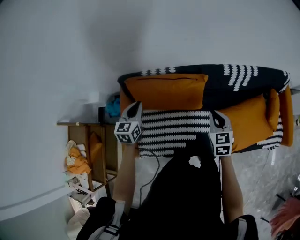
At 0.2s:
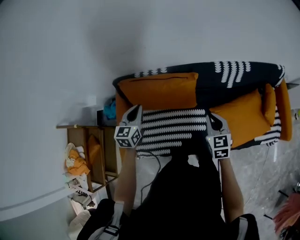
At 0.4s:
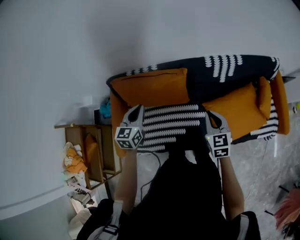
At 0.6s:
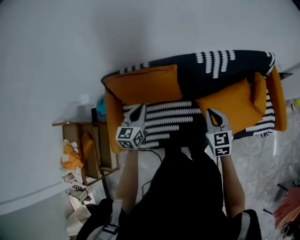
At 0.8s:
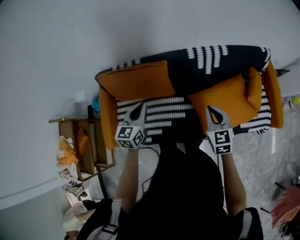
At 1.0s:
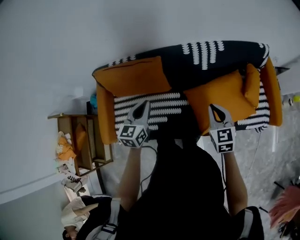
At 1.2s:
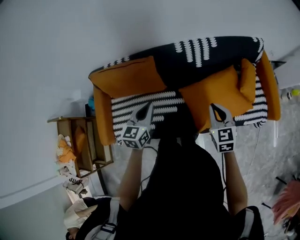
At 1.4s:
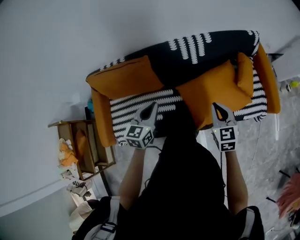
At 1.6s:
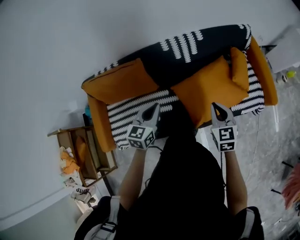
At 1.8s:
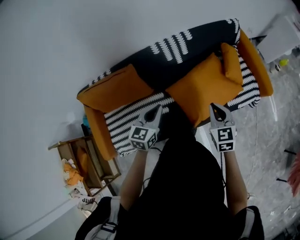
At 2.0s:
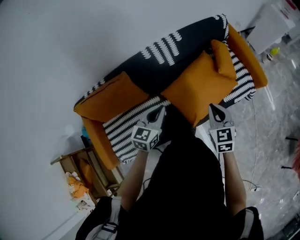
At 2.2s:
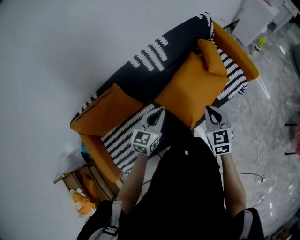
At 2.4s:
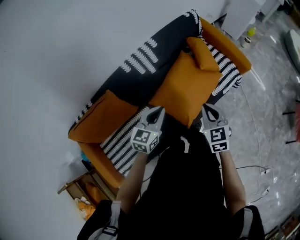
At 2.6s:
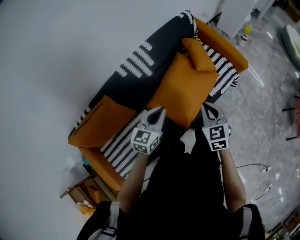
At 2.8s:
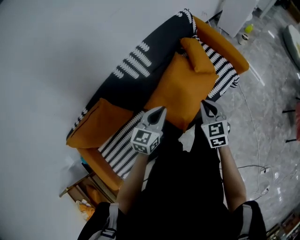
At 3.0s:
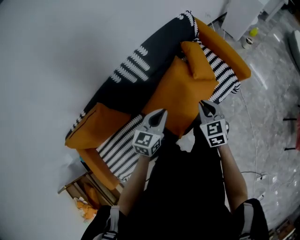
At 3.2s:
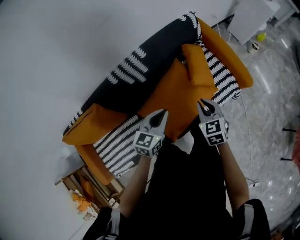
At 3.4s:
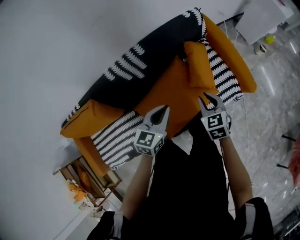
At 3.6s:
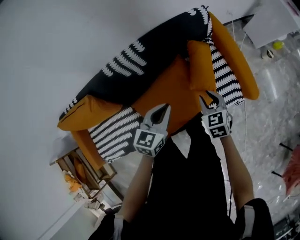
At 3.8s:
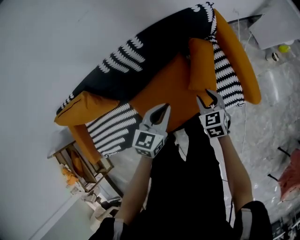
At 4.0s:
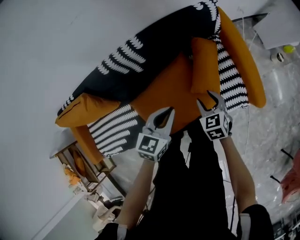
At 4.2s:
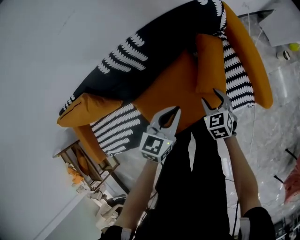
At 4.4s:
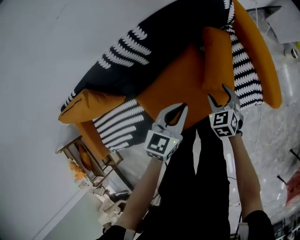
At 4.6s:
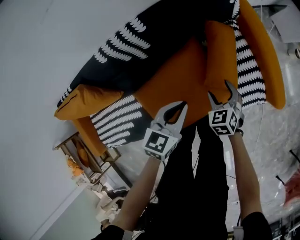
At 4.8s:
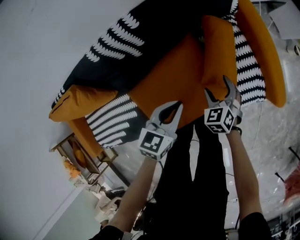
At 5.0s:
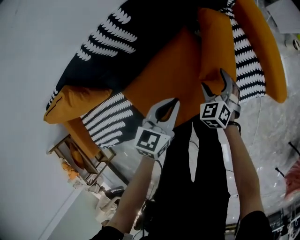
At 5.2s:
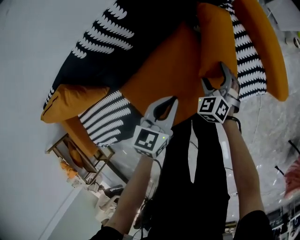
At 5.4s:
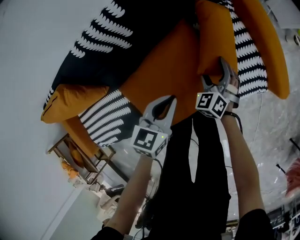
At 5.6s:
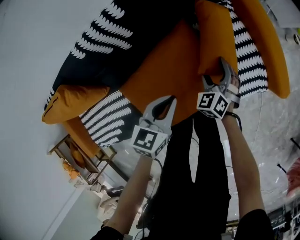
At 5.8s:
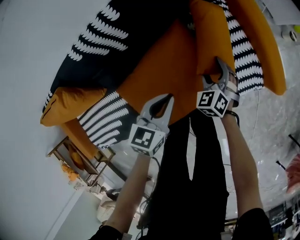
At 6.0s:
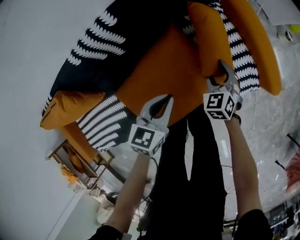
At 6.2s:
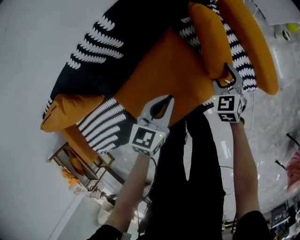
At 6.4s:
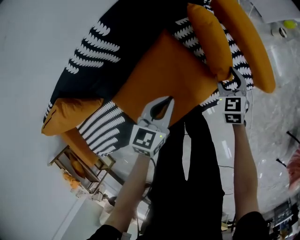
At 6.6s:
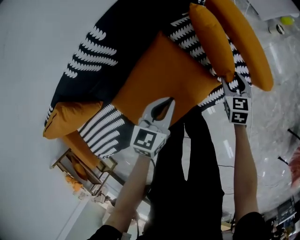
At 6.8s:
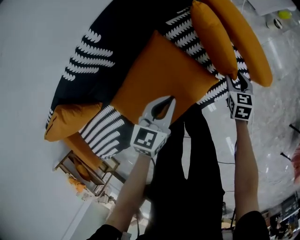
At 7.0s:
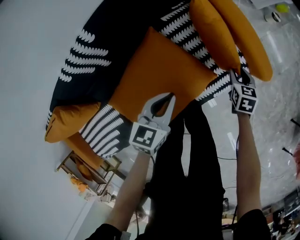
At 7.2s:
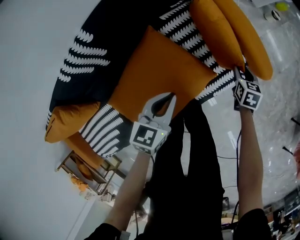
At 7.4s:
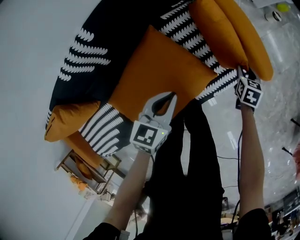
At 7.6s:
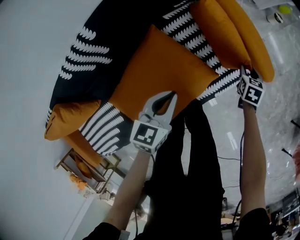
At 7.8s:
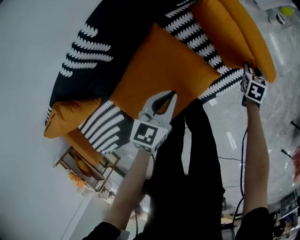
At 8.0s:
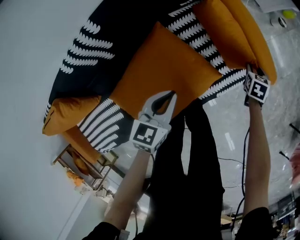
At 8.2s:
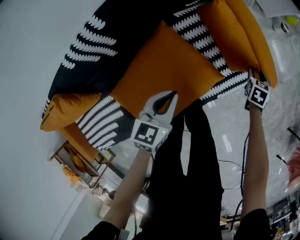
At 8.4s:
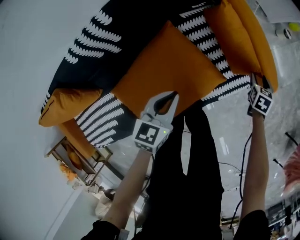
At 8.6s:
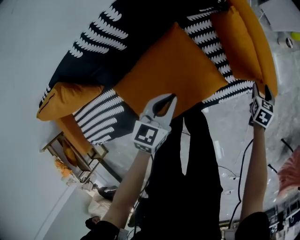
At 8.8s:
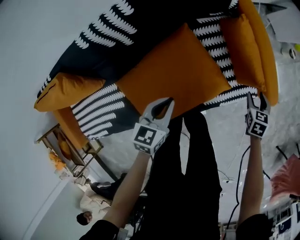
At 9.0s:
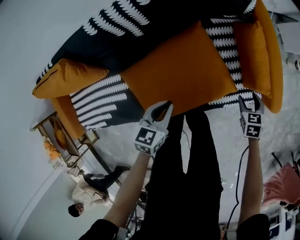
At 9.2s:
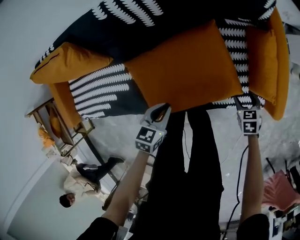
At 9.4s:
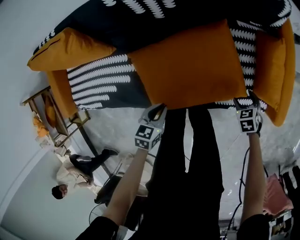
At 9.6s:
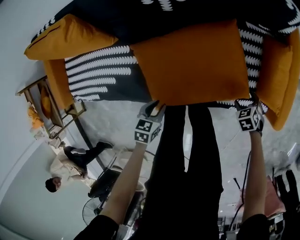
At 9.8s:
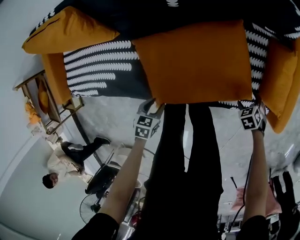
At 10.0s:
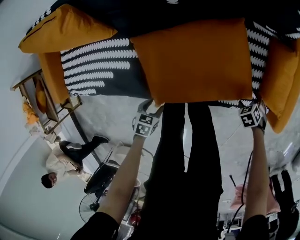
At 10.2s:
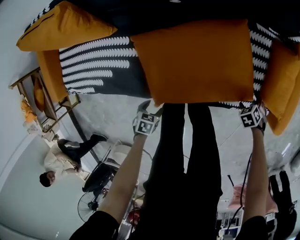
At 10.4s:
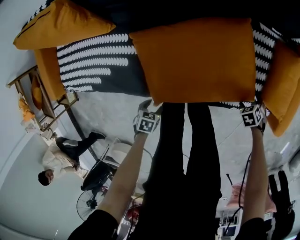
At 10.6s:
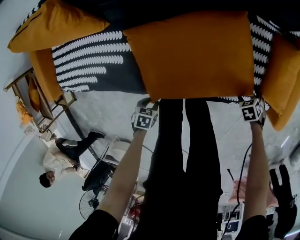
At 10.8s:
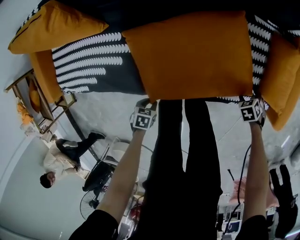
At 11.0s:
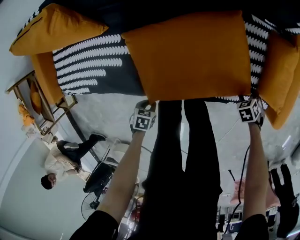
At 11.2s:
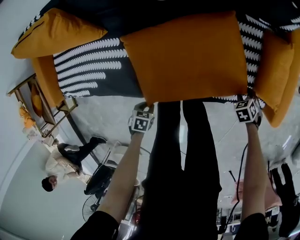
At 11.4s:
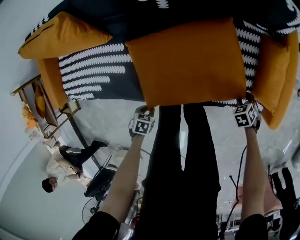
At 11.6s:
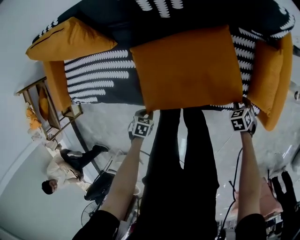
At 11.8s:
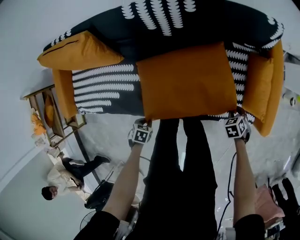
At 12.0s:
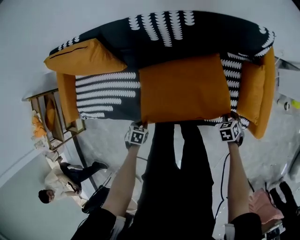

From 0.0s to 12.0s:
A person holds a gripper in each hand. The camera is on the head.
From 0.0s to 1.6s: The right gripper goes about 35 cm to the right and backward. The left gripper travels to the right by about 40 cm, and swivels some 20 degrees.
From 1.6s to 3.0s: The right gripper changes place by roughly 15 cm. Meanwhile the left gripper shifts by approximately 25 cm, and swivels about 30 degrees.
From 3.0s to 4.4s: The right gripper goes about 30 cm downward, forward and to the right, turns by roughly 20 degrees, and opens; the left gripper heads forward, to the right and downward, covering roughly 25 cm.
From 4.4s to 6.0s: The two grippers go about 10 cm downward.
From 6.0s to 7.6s: The right gripper heads to the right, covering about 25 cm, and rotates around the line of its fingers by approximately 40 degrees, clockwise from behind; the left gripper travels to the right by roughly 5 cm.
From 7.6s to 9.0s: The right gripper ends up roughly 15 cm from where it was, and swivels roughly 40 degrees. The left gripper changes place by some 15 cm, and changes its angle by roughly 20 degrees.
From 9.0s to 10.4s: The left gripper changes place by about 35 cm, tilts its fingers roughly 30 degrees downward, and opens up, while the right gripper travels downward by approximately 15 cm, and rotates some 50 degrees.
From 10.4s to 12.0s: Both grippers move upward, approximately 15 cm. The left gripper closes its fingers. The right gripper closes up.

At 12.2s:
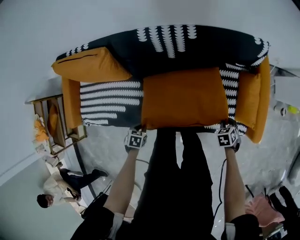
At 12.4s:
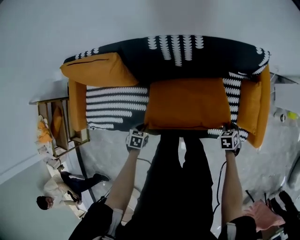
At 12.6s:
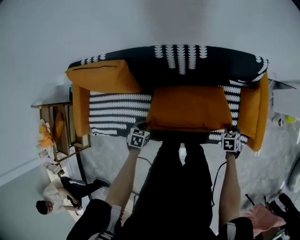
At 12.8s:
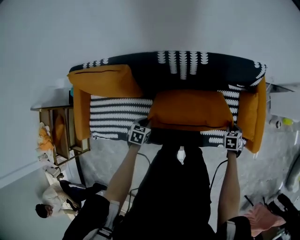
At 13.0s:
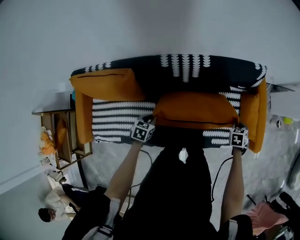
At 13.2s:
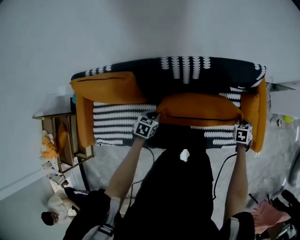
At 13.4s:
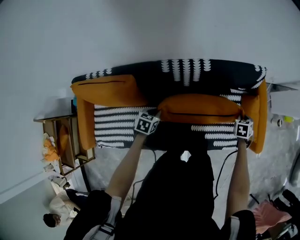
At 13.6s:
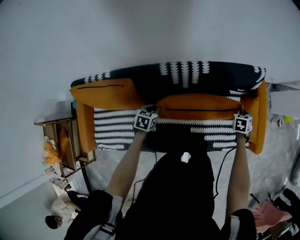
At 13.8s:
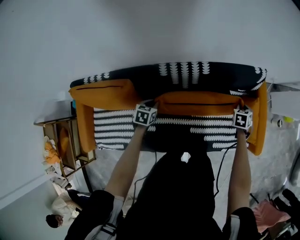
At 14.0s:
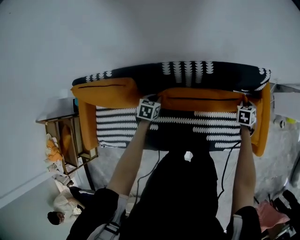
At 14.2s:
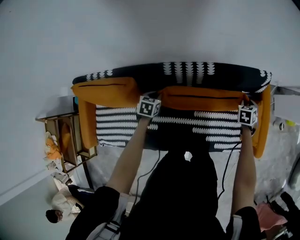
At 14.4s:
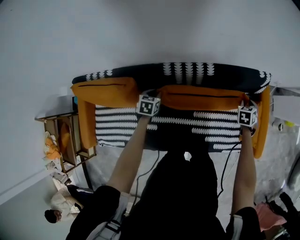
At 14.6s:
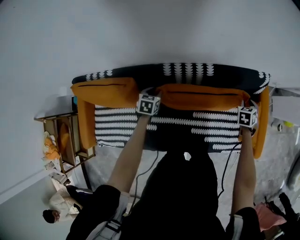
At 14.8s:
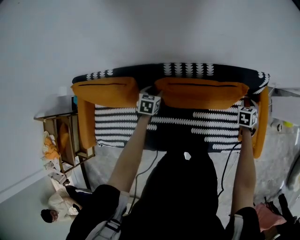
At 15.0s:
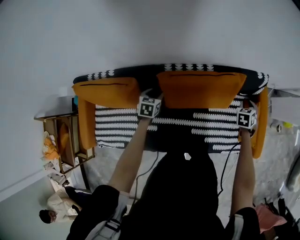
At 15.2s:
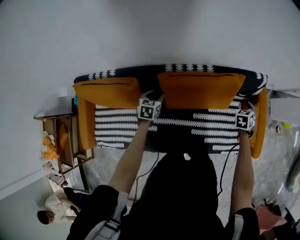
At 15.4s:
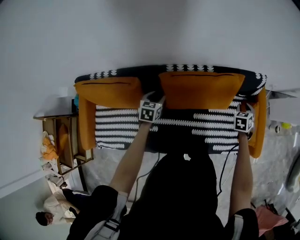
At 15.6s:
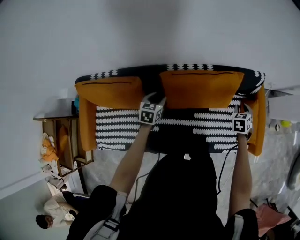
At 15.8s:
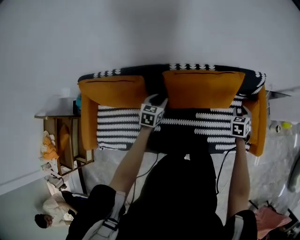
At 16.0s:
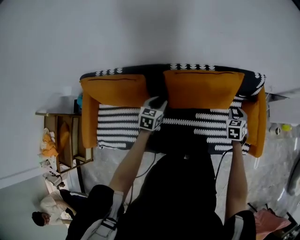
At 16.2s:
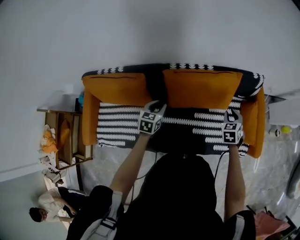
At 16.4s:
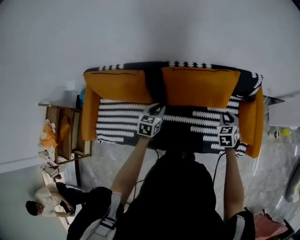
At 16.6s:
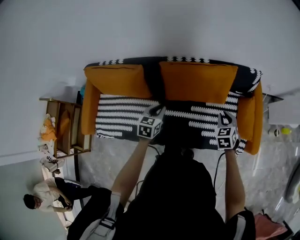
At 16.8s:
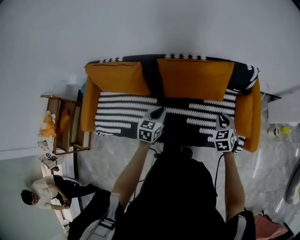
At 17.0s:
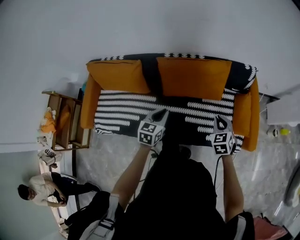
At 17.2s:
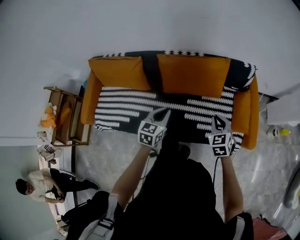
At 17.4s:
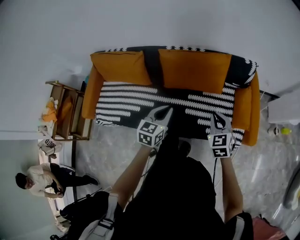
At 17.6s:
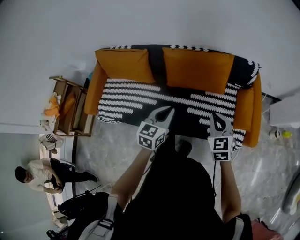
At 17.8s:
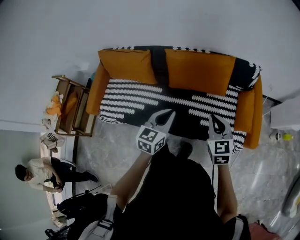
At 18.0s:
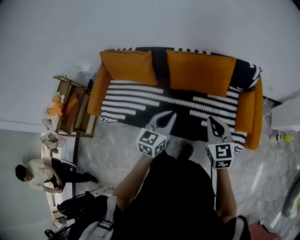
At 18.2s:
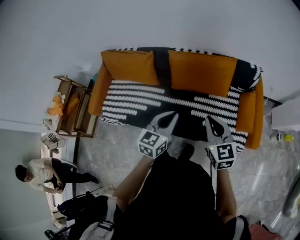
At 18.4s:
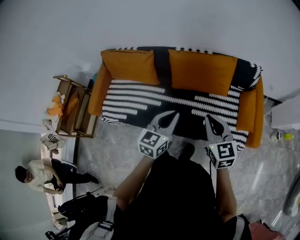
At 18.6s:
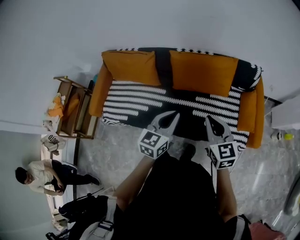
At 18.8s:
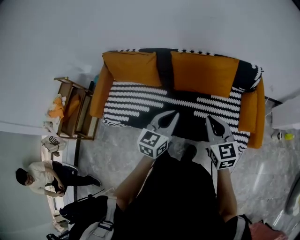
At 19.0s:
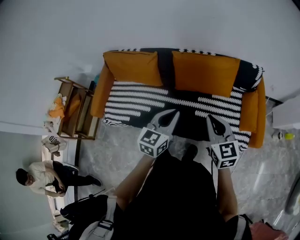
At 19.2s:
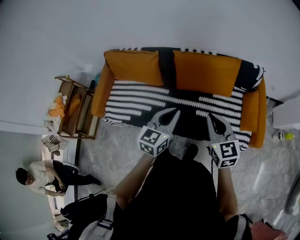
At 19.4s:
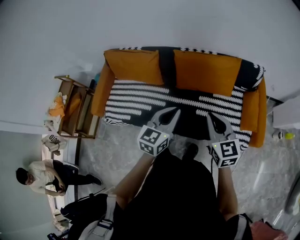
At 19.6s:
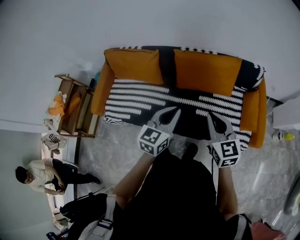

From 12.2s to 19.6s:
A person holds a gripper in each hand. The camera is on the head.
From 12.2s to 13.6s: The left gripper shifts by about 30 cm, and swivels roughly 20 degrees. The right gripper moves approximately 25 cm, and changes its angle by roughly 30 degrees.
From 13.6s to 15.2s: The left gripper goes approximately 10 cm forward and to the left, and opens. The right gripper moves to the left and upward, approximately 10 cm.
From 15.2s to 16.6s: The left gripper travels backward, to the right and upward by roughly 25 cm, and closes its fingers. The right gripper moves backward, approximately 20 cm, and rotates roughly 20 degrees.
From 16.6s to 18.2s: The left gripper moves backward, upward and to the right, approximately 30 cm, while the right gripper goes roughly 25 cm backward and upward, and changes its angle by roughly 40 degrees.
From 18.2s to 19.6s: The right gripper moves about 5 cm.

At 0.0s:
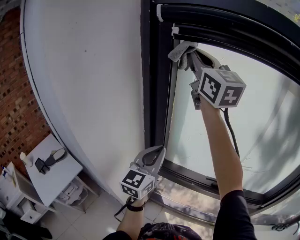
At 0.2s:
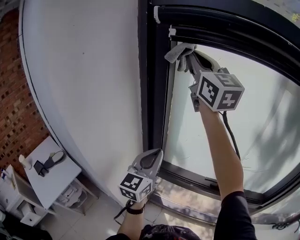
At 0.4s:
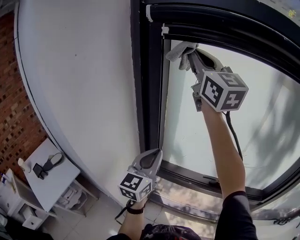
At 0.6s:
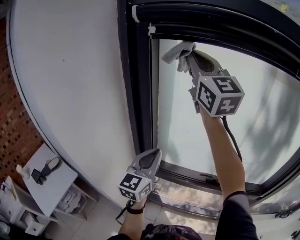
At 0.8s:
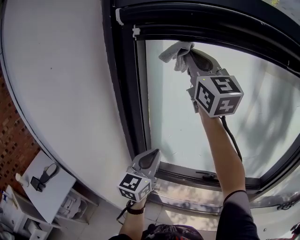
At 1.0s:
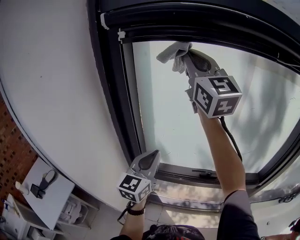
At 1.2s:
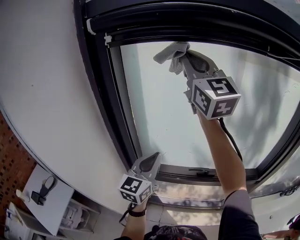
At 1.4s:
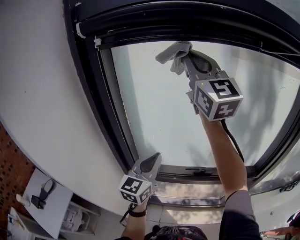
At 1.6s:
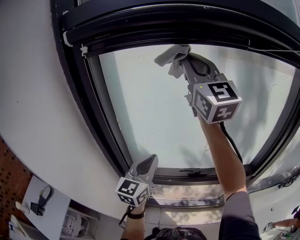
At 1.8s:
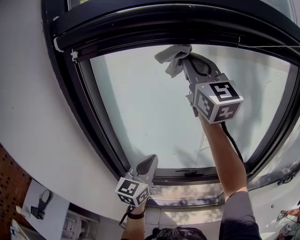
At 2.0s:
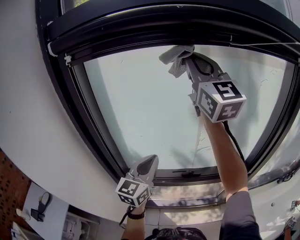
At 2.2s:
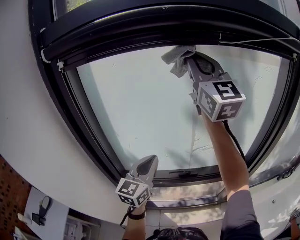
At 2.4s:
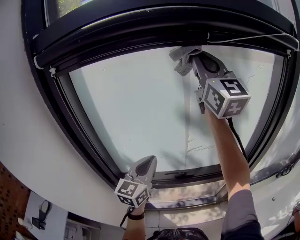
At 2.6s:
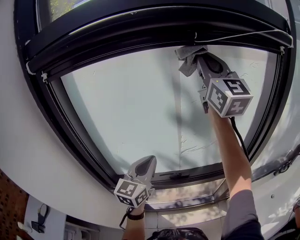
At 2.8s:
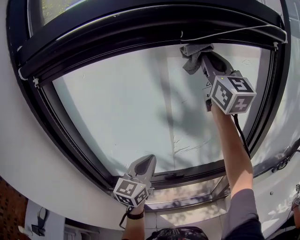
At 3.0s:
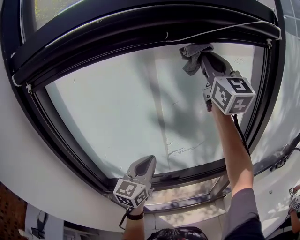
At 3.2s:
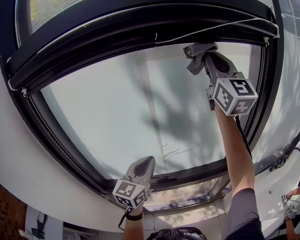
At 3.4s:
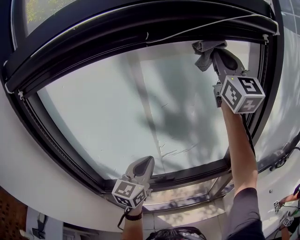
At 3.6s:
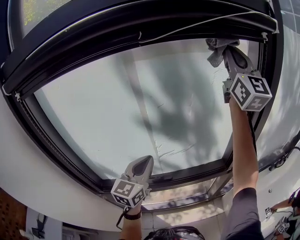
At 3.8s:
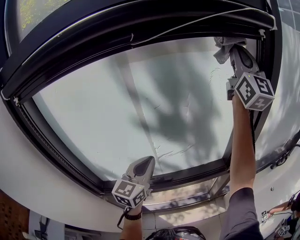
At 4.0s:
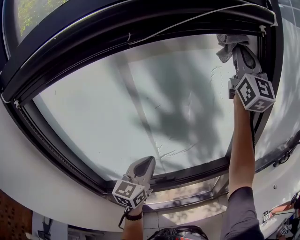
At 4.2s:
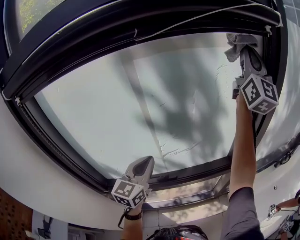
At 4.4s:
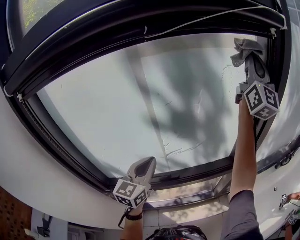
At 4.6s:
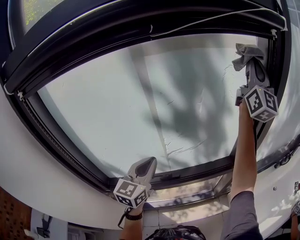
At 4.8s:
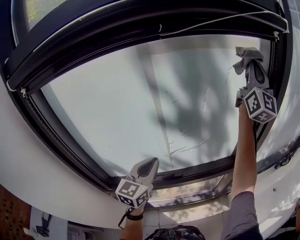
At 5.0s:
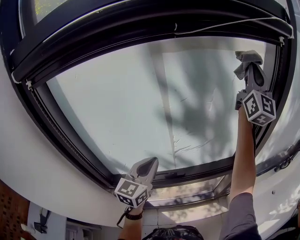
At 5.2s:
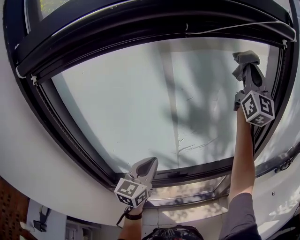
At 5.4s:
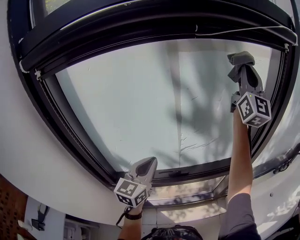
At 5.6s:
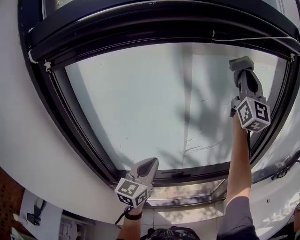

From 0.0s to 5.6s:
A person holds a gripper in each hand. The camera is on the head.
From 0.0s to 1.4s: The grippers both shift to the right by approximately 15 cm. The right gripper changes its angle by roughly 20 degrees.
From 1.4s to 2.8s: The right gripper moves to the right, some 30 cm. Meanwhile the left gripper goes approximately 15 cm to the right.
From 2.8s to 4.2s: The right gripper shifts some 20 cm to the right, and changes its angle by some 20 degrees. Meanwhile the left gripper heads to the right, covering approximately 5 cm.
From 4.2s to 5.6s: The right gripper goes approximately 15 cm to the left, while the left gripper moves to the left and backward, some 10 cm.
